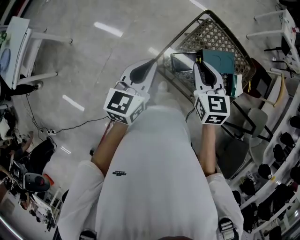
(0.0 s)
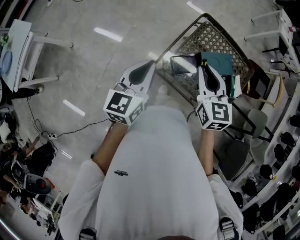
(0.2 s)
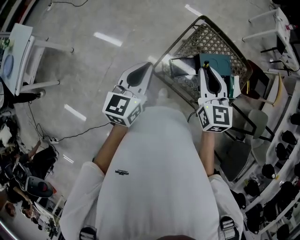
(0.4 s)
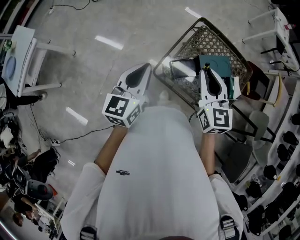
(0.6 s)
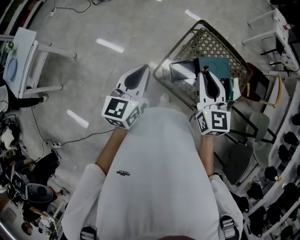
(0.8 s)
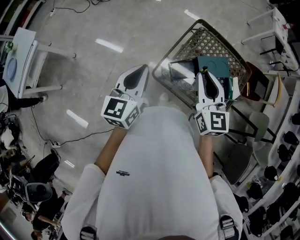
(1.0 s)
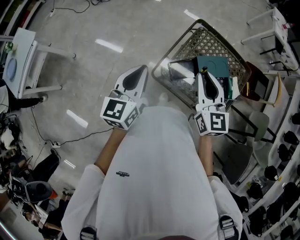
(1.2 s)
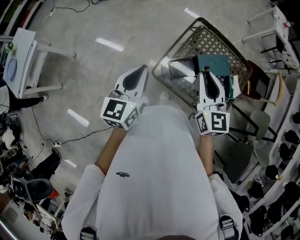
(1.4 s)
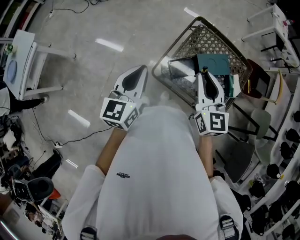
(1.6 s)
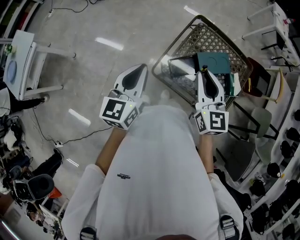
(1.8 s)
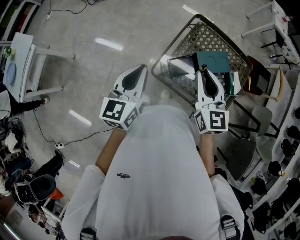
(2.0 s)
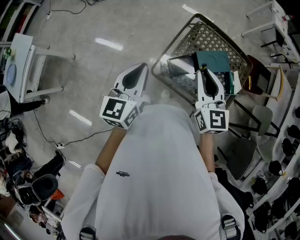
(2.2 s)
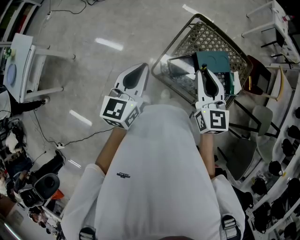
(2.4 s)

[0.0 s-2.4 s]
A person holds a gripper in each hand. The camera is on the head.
0.0 to 1.2 s: The right gripper moves upward, approximately 5 cm, and turns by roughly 20 degrees.
1.2 to 2.4 s: The grippers make only small movements.

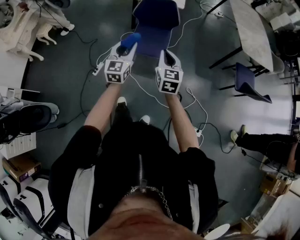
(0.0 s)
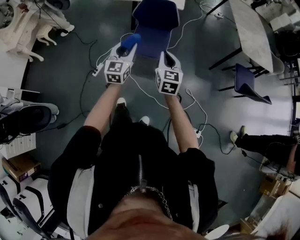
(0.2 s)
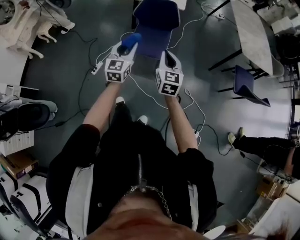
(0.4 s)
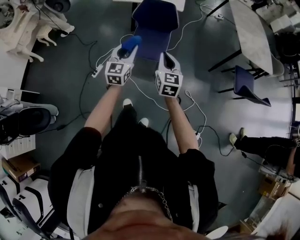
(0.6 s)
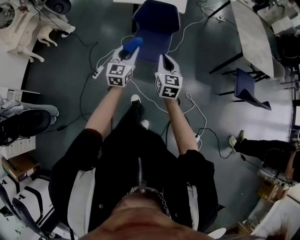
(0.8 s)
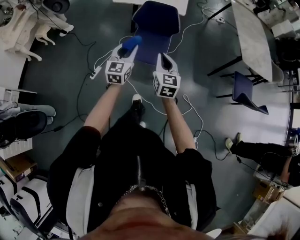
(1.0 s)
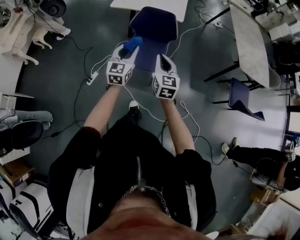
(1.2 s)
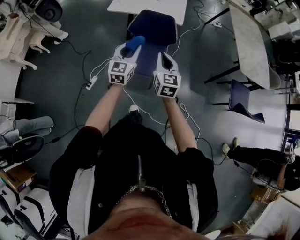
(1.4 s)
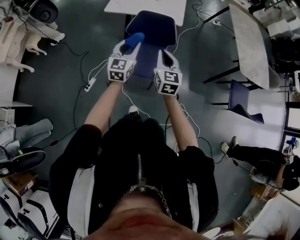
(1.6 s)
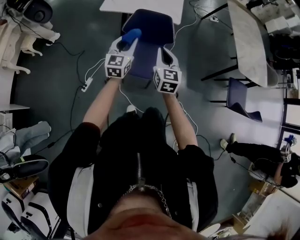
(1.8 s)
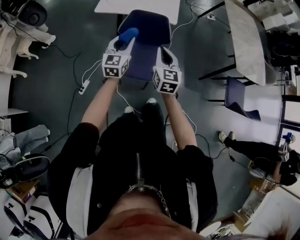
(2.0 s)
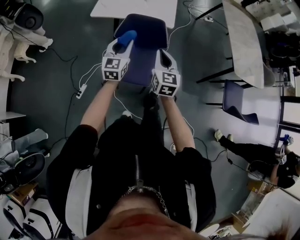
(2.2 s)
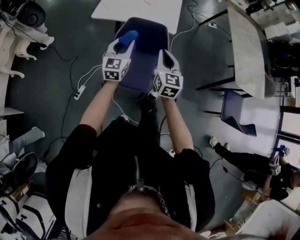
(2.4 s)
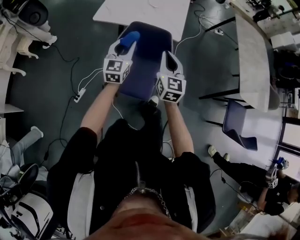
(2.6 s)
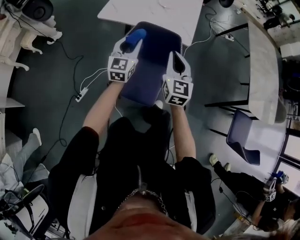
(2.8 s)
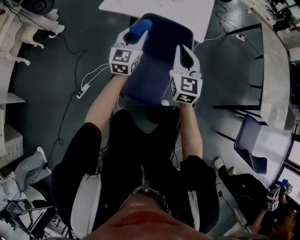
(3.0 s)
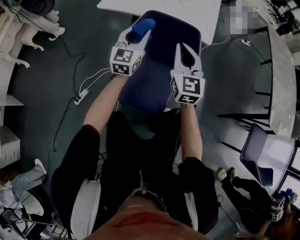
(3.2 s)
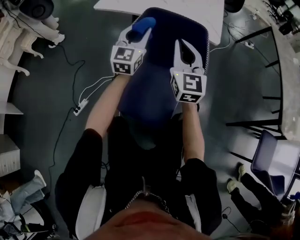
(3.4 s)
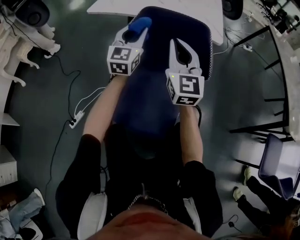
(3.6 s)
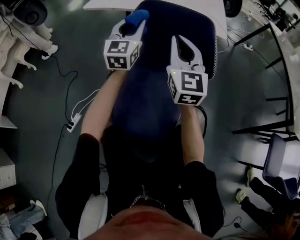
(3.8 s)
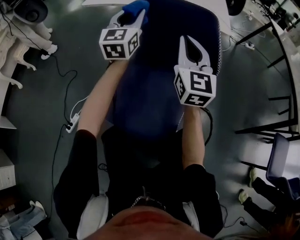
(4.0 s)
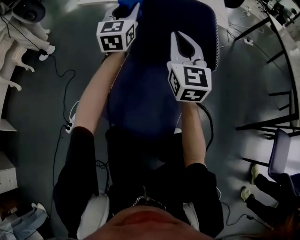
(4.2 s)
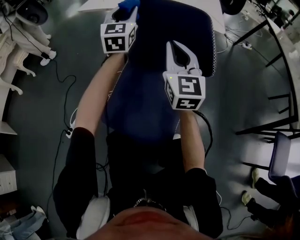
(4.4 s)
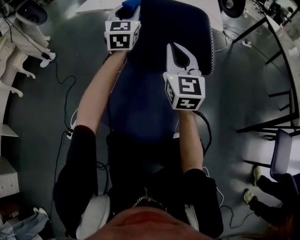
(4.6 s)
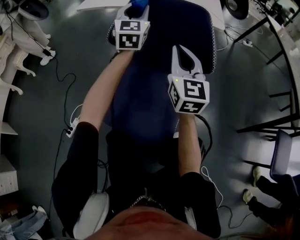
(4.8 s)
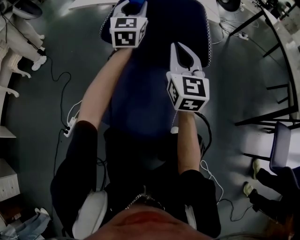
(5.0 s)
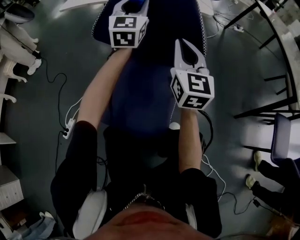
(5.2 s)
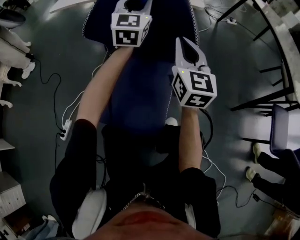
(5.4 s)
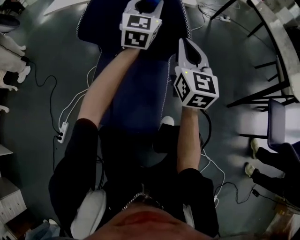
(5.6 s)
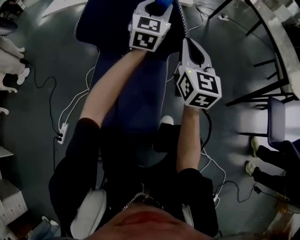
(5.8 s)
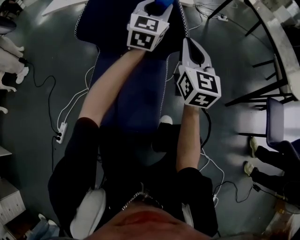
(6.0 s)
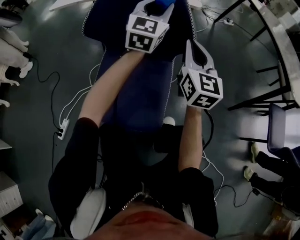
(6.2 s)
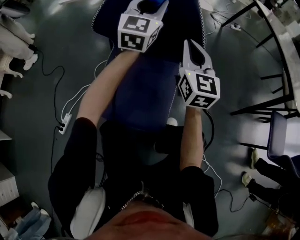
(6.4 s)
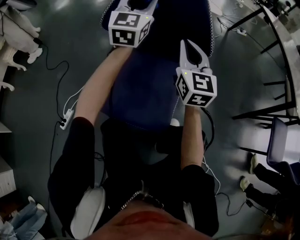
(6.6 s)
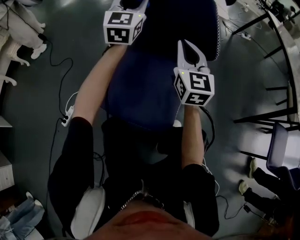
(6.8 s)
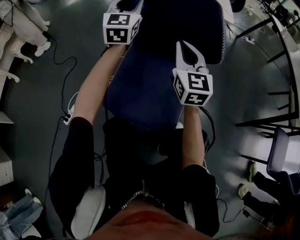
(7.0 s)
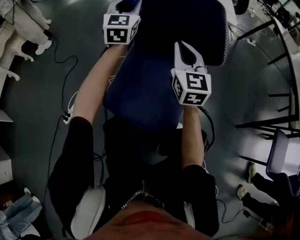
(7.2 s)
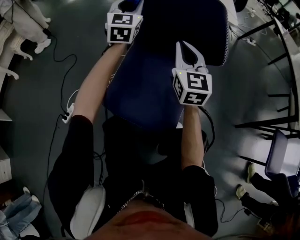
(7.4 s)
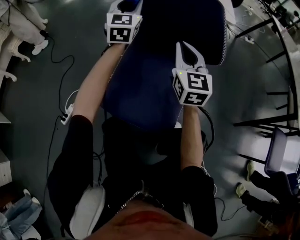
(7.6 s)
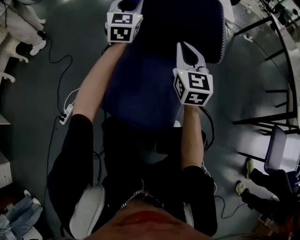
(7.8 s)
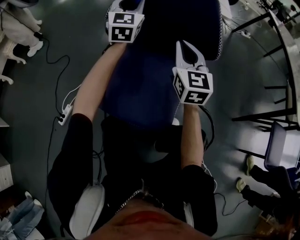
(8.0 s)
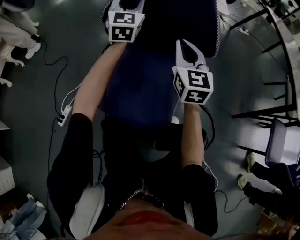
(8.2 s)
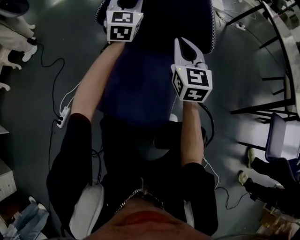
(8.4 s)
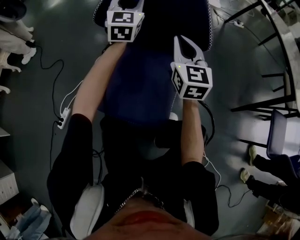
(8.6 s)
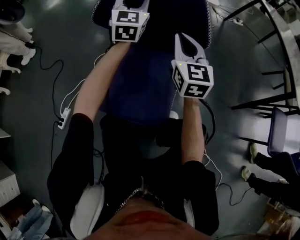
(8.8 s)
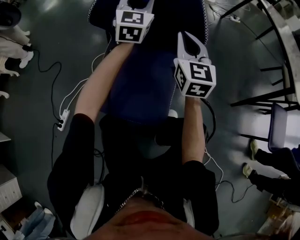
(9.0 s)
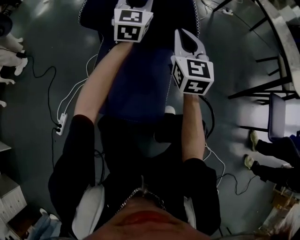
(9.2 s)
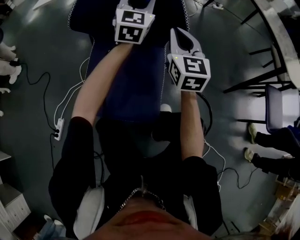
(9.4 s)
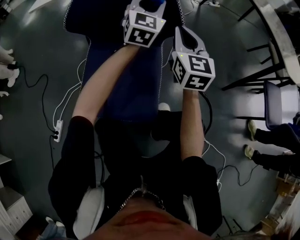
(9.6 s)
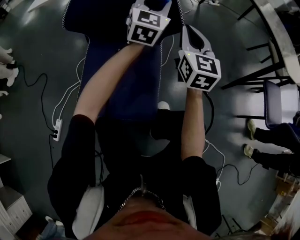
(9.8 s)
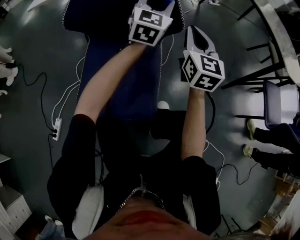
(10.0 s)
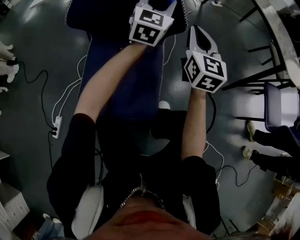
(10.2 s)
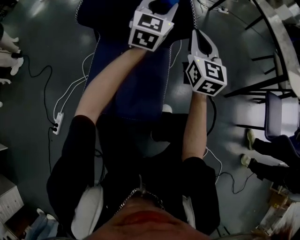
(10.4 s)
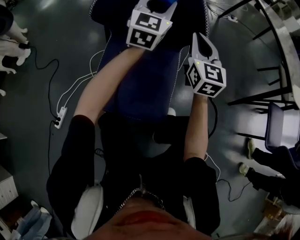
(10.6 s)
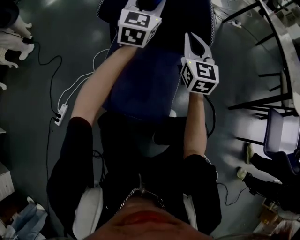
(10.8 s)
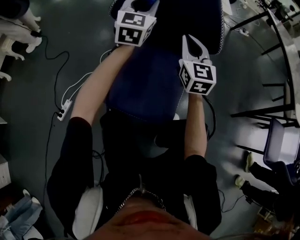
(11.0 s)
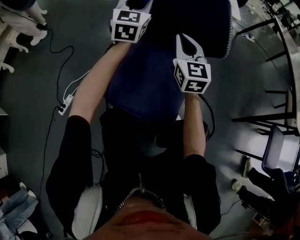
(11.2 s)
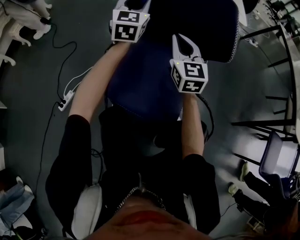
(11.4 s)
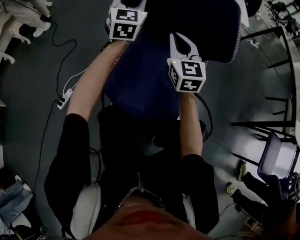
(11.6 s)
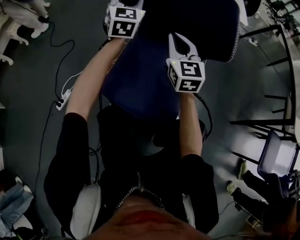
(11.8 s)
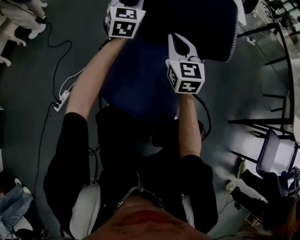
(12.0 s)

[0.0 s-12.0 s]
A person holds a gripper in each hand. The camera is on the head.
0.0 to 1.6 s: The grippers both shift forward by approximately 25 cm.
1.6 to 3.0 s: The grippers both shift forward and downward by approximately 30 cm.
3.0 to 4.4 s: The left gripper goes about 20 cm downward and forward. Meanwhile the right gripper moves downward, about 25 cm.
4.4 to 6.0 s: The right gripper shifts some 15 cm to the right; the left gripper heads to the right, covering some 25 cm, and rotates approximately 30 degrees.
6.0 to 7.6 s: The right gripper travels to the left by some 15 cm. The left gripper shifts some 25 cm to the left, and rotates approximately 20 degrees.
7.6 to 9.0 s: The left gripper goes approximately 15 cm to the right. Meanwhile the right gripper shifts some 5 cm to the right.
9.0 to 10.4 s: Both grippers travel together to the right, about 10 cm.
10.4 to 12.0 s: The right gripper shifts by approximately 25 cm, and turns by about 30 degrees. Meanwhile the left gripper moves some 30 cm, and swivels about 30 degrees.

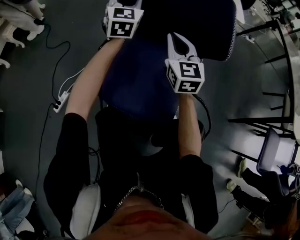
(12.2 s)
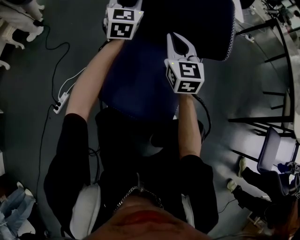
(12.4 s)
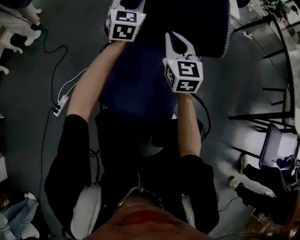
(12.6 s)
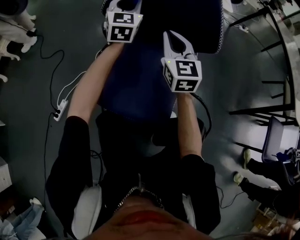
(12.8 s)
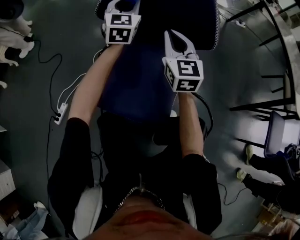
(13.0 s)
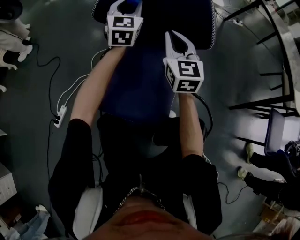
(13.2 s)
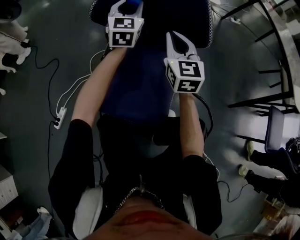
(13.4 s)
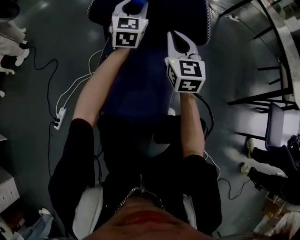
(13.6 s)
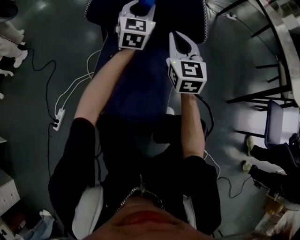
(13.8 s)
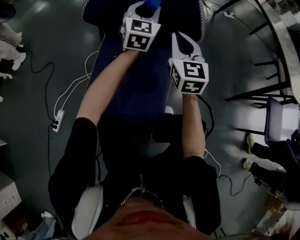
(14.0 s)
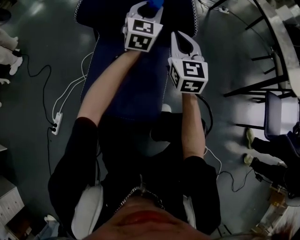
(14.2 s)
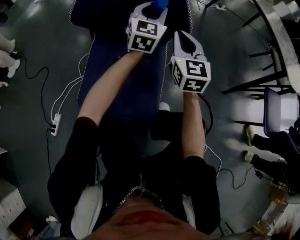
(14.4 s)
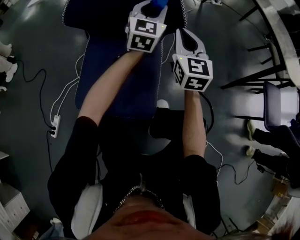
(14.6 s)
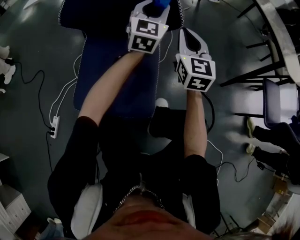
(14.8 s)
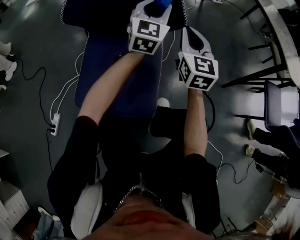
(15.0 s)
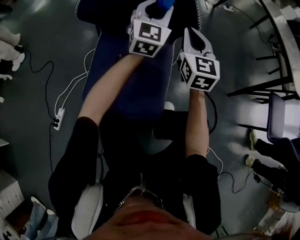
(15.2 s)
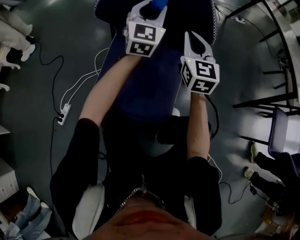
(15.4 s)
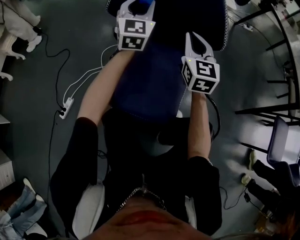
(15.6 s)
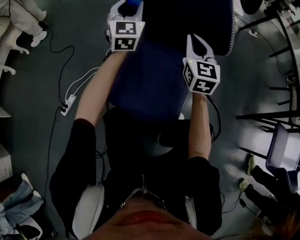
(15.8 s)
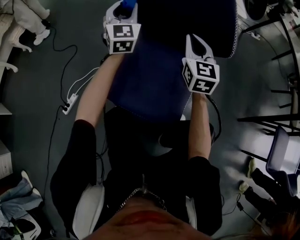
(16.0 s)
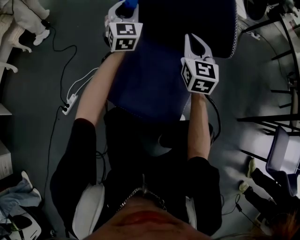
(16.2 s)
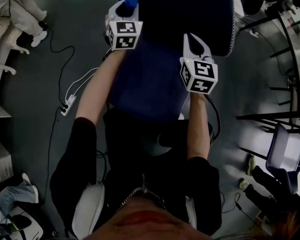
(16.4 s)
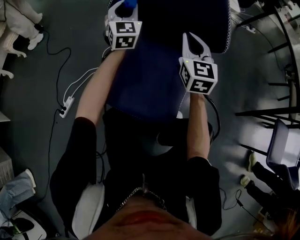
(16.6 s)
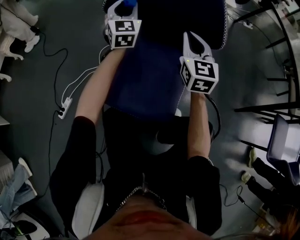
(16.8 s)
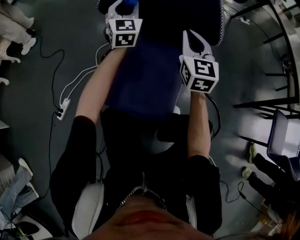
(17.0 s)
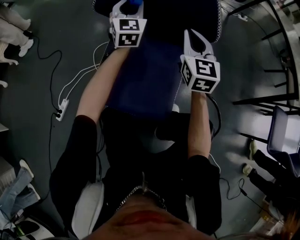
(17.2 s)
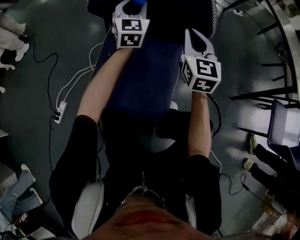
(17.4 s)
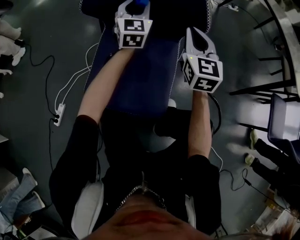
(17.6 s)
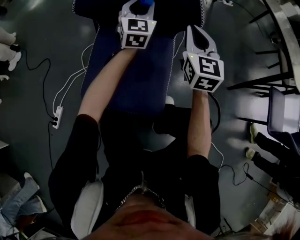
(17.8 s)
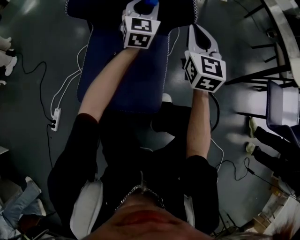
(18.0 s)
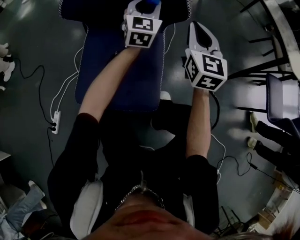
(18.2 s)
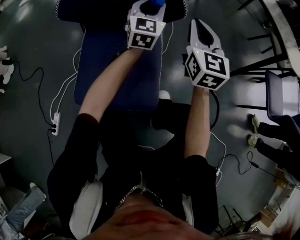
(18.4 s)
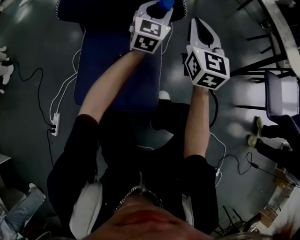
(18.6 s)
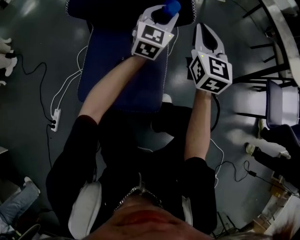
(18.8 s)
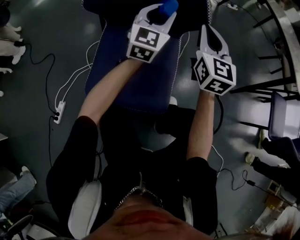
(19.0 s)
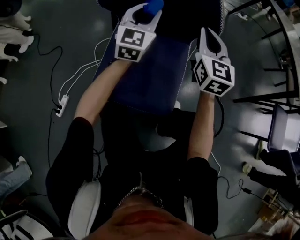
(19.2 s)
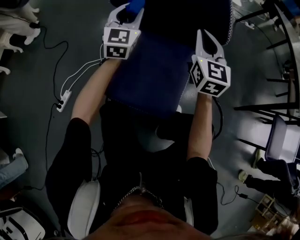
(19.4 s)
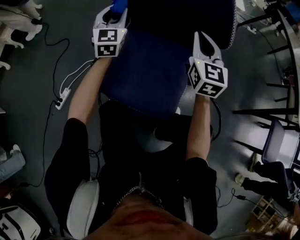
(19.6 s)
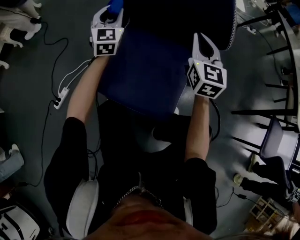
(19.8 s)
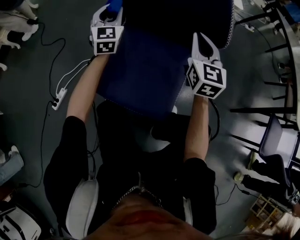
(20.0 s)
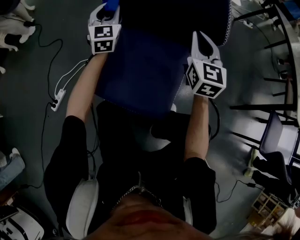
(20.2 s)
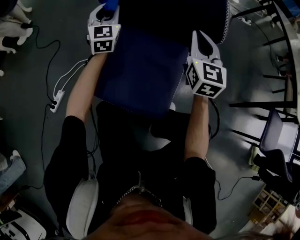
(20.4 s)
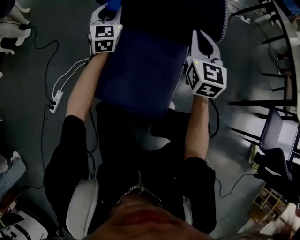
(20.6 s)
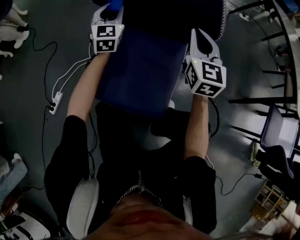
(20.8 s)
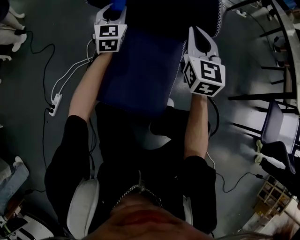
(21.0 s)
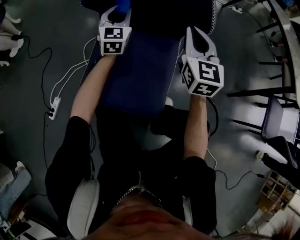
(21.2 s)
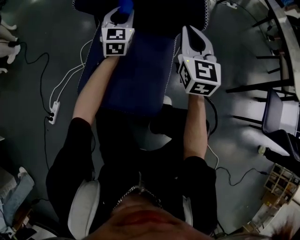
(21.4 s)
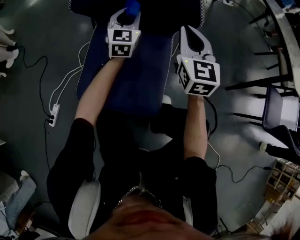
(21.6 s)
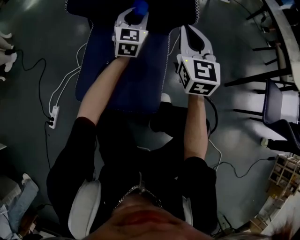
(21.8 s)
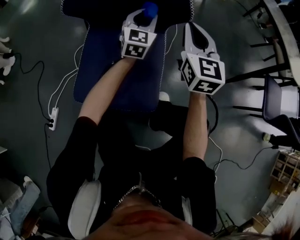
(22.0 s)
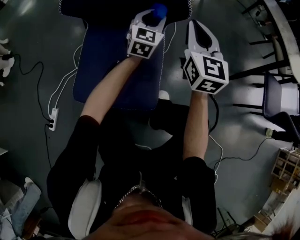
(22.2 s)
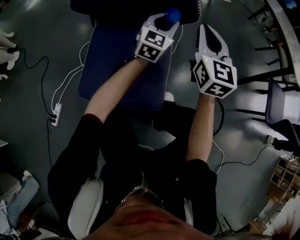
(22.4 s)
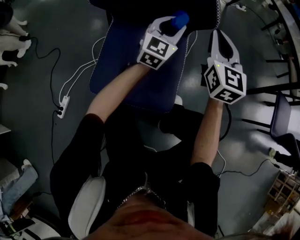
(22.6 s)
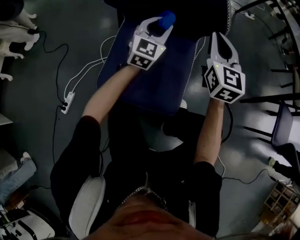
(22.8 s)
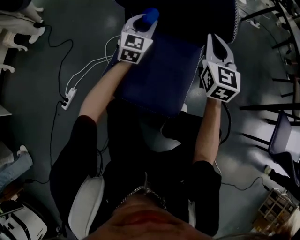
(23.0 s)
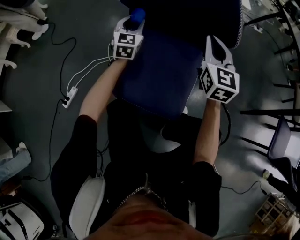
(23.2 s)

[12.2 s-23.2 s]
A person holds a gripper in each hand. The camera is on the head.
12.2 to 13.8 s: The right gripper moves to the right, about 10 cm; the left gripper heads to the right, covering roughly 15 cm.
13.8 to 15.4 s: The left gripper goes to the right and returns, roughly 15 cm each way; the right gripper reaches some 10 cm to the right, then returns.
15.4 to 17.0 s: The left gripper moves to the left, forward and downward, about 15 cm.
17.0 to 18.4 s: The right gripper shifts some 15 cm to the right; the left gripper moves to the right, roughly 25 cm, and turns by some 30 degrees.
18.4 to 20.0 s: The right gripper shifts by approximately 15 cm, while the left gripper changes place by about 30 cm, and swivels about 30 degrees.
20.0 to 21.6 s: The left gripper goes roughly 20 cm to the right. Meanwhile the right gripper ends up approximately 5 cm from where it was.
21.6 to 23.2 s: The left gripper moves to the left, approximately 15 cm.
